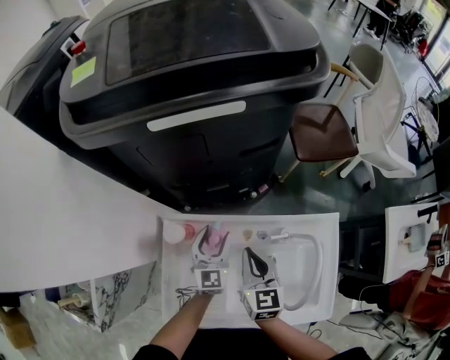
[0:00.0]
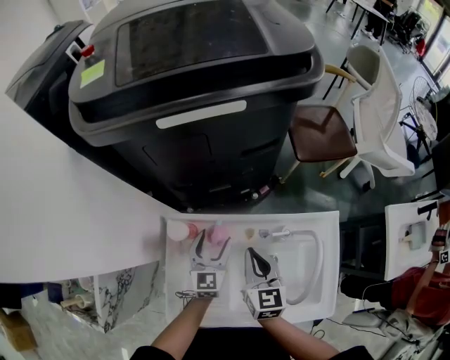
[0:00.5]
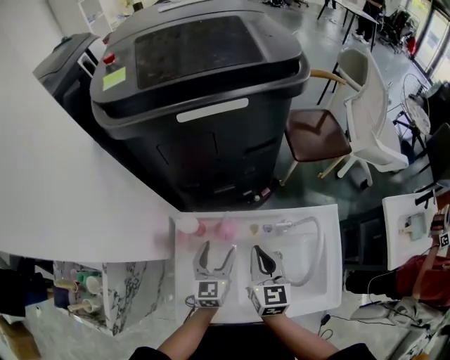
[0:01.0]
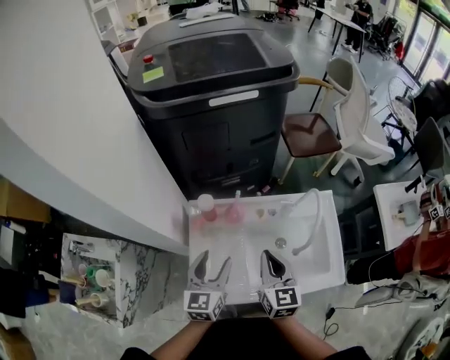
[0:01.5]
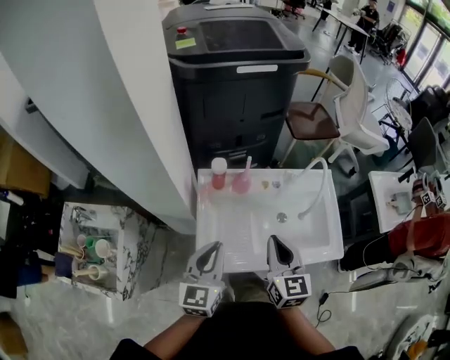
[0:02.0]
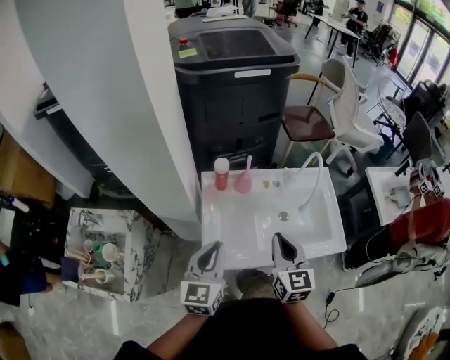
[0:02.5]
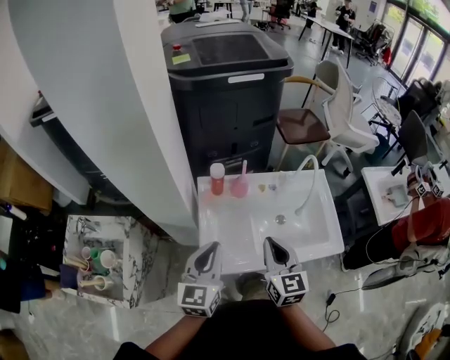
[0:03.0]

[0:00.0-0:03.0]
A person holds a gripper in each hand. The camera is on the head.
0:00.0 to 0:01.5: The right gripper is displaced backward and upward by about 20 cm. Meanwhile the left gripper shifts roughly 25 cm backward, upward and to the left.
0:01.5 to 0:03.0: The right gripper shifts roughly 15 cm backward. Meanwhile the left gripper is displaced backward, upward and to the left by roughly 15 cm, and closes.

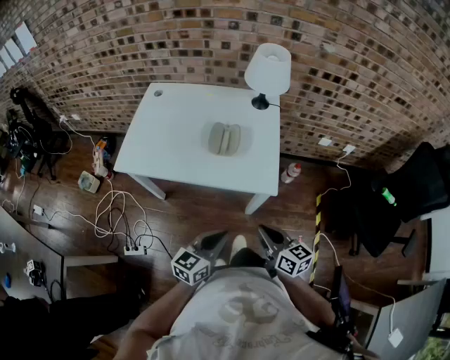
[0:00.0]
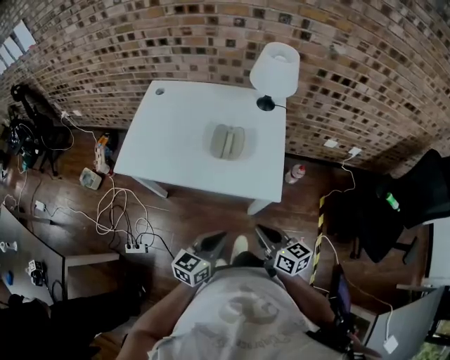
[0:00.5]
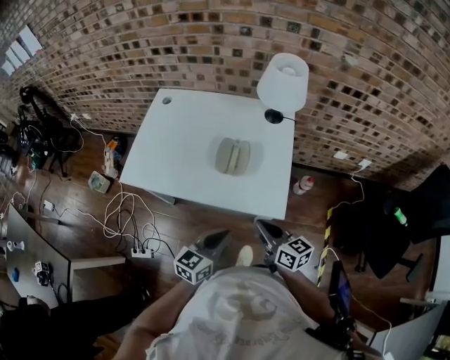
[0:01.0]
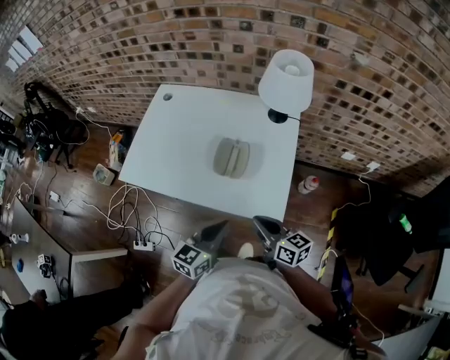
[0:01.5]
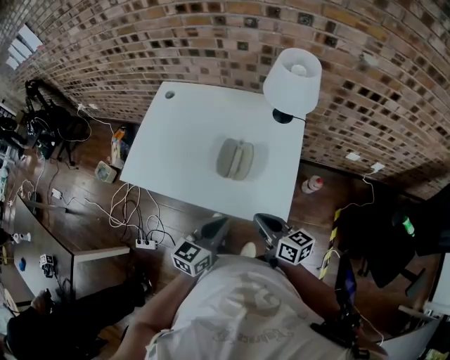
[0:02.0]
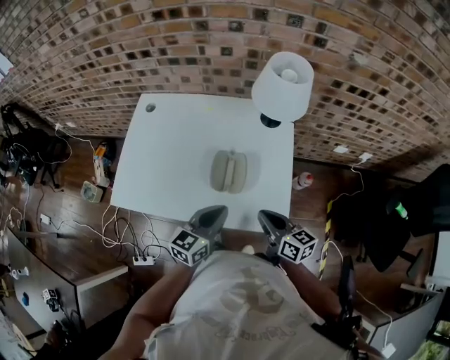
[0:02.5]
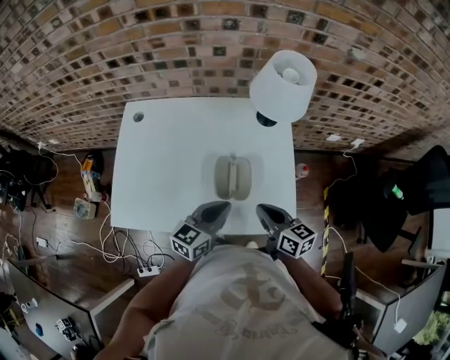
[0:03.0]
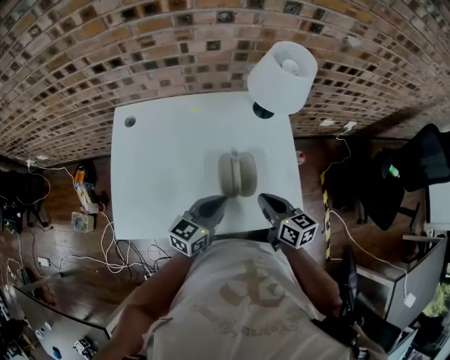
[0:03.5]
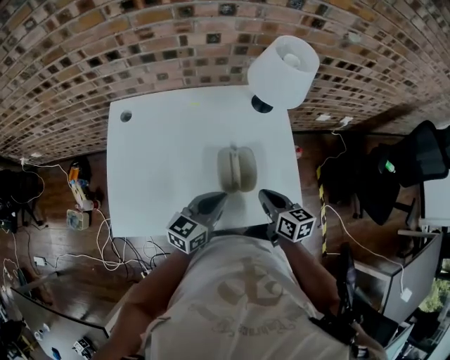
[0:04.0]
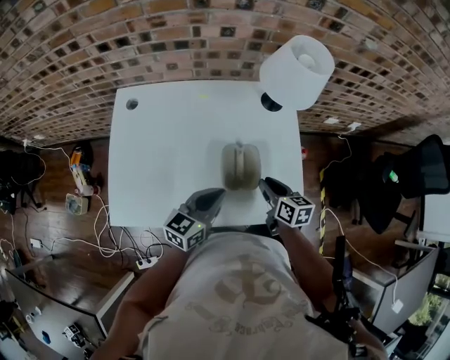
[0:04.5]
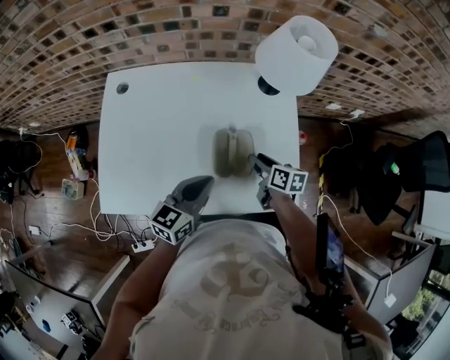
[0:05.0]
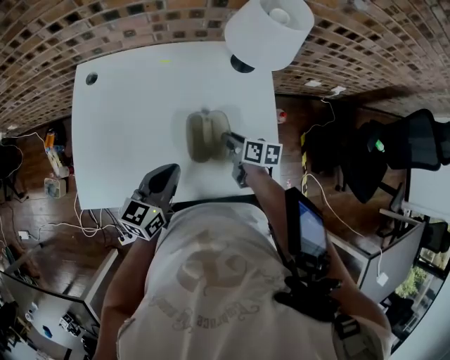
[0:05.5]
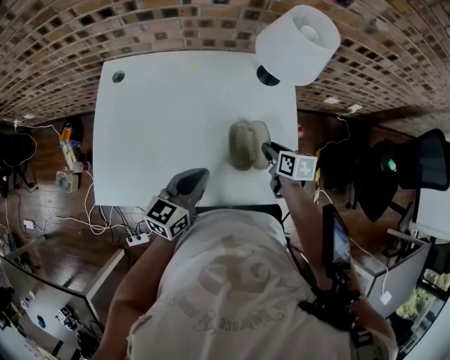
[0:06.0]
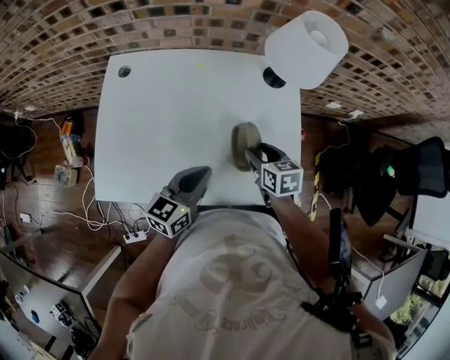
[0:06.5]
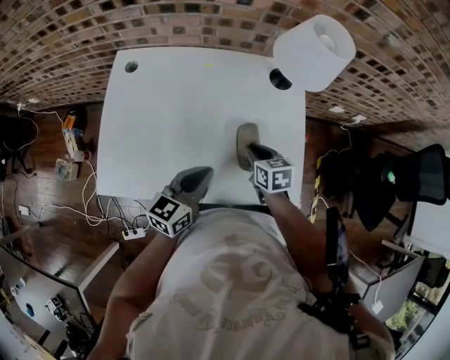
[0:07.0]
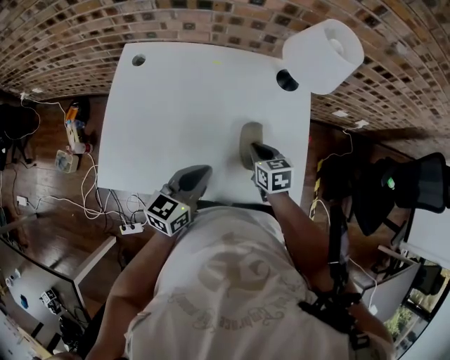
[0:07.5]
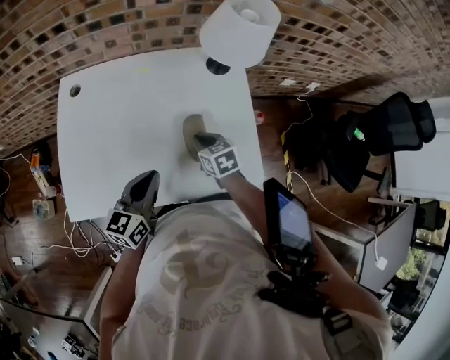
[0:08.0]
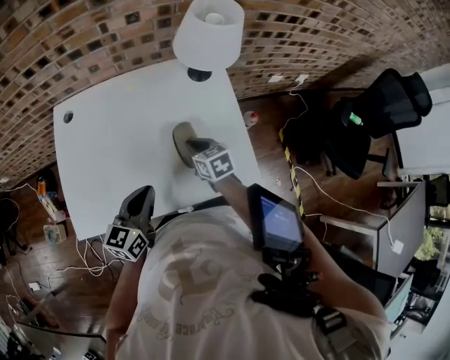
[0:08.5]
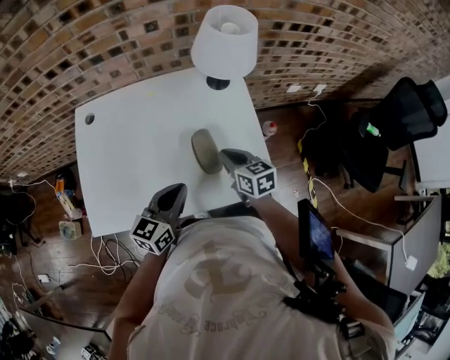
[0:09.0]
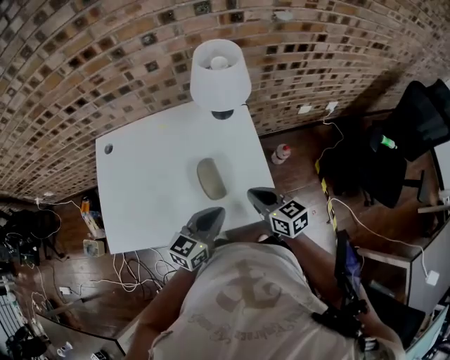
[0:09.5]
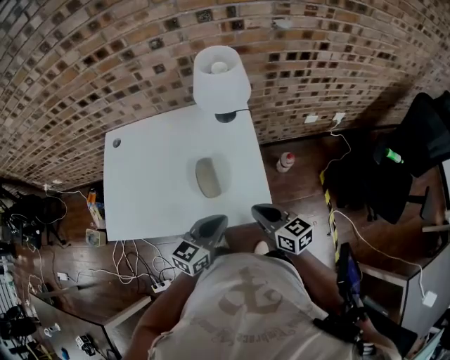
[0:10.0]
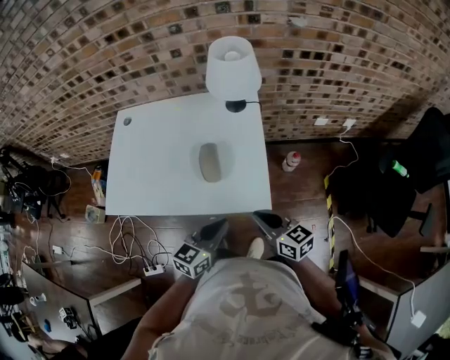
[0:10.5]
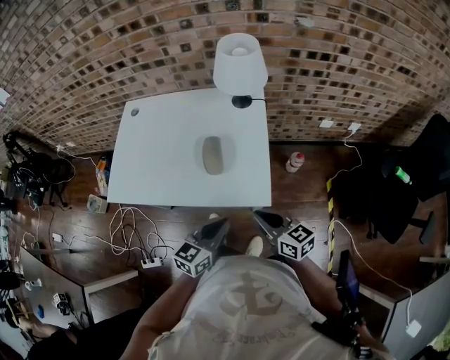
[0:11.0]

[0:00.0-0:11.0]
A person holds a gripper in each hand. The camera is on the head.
0:00.0 to 0:02.0: Both grippers move forward, approximately 20 cm.
0:02.0 to 0:03.5: The right gripper changes place by approximately 15 cm, and rotates about 30 degrees. Meanwhile the left gripper moves some 20 cm, and rotates roughly 30 degrees.
0:03.5 to 0:05.5: The right gripper heads downward and forward, covering approximately 15 cm, rotates about 30 degrees, and opens its fingers.
0:05.5 to 0:07.5: The right gripper moves about 5 cm, turns by some 40 degrees, and closes up.
0:07.5 to 0:09.0: The right gripper travels upward and to the right by about 10 cm. Meanwhile the left gripper moves to the right, roughly 5 cm.
0:09.0 to 0:11.0: The right gripper shifts some 25 cm backward and to the right, and changes its angle by about 30 degrees. Meanwhile the left gripper goes roughly 25 cm to the right and backward.

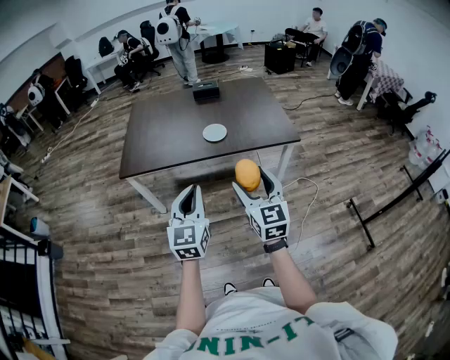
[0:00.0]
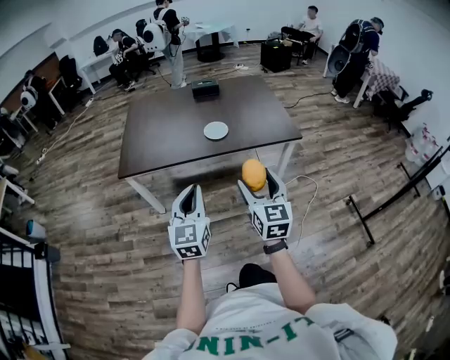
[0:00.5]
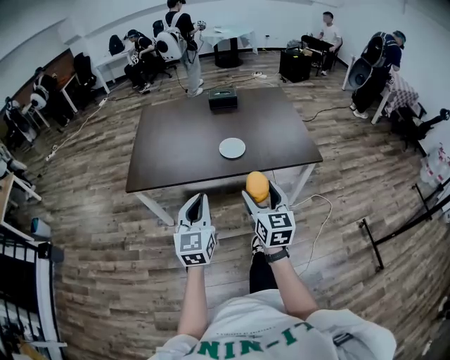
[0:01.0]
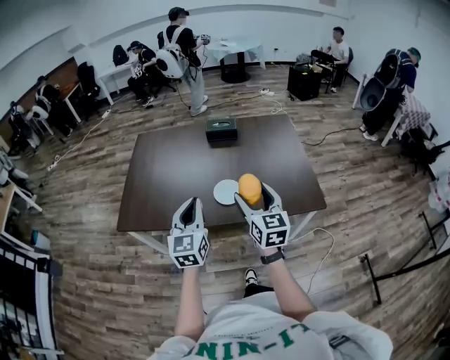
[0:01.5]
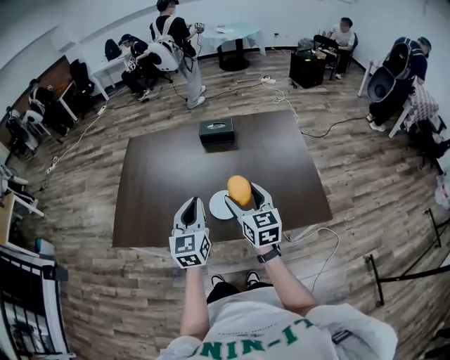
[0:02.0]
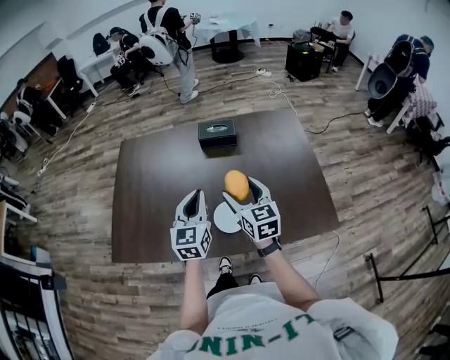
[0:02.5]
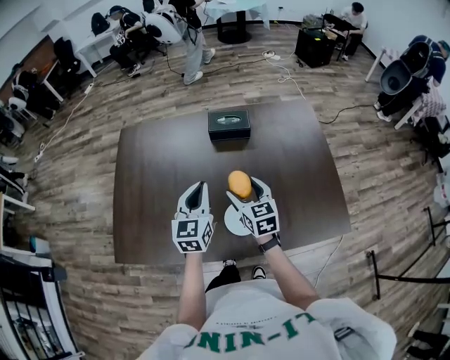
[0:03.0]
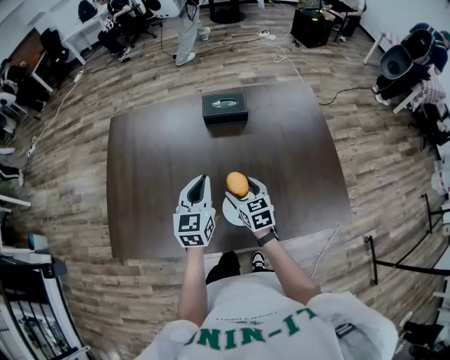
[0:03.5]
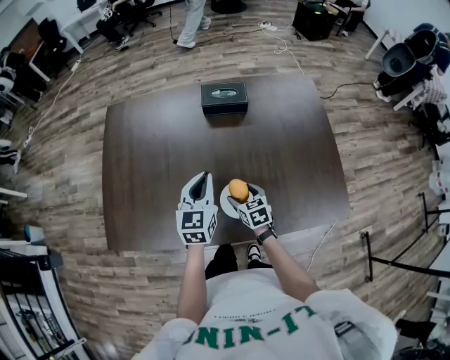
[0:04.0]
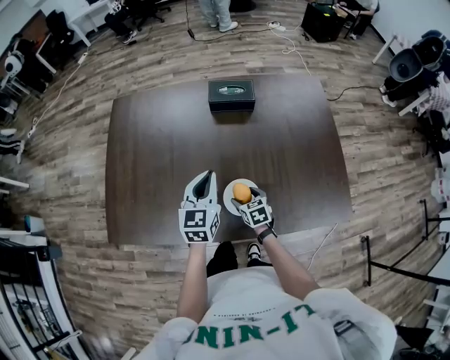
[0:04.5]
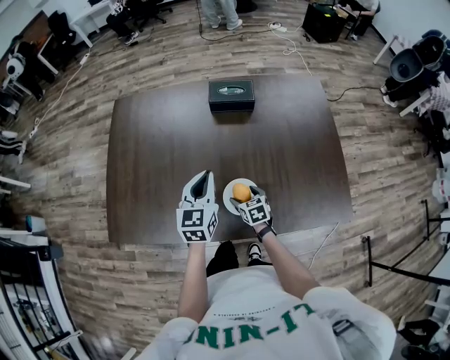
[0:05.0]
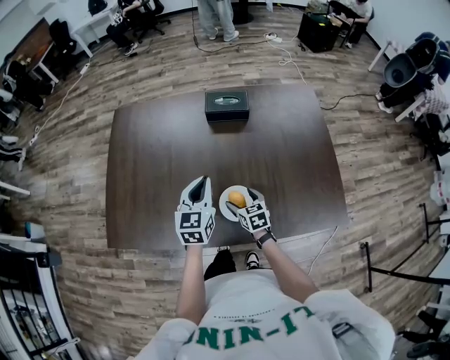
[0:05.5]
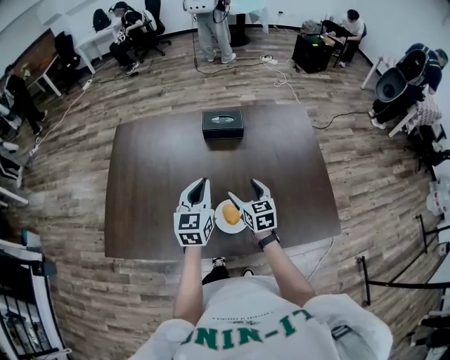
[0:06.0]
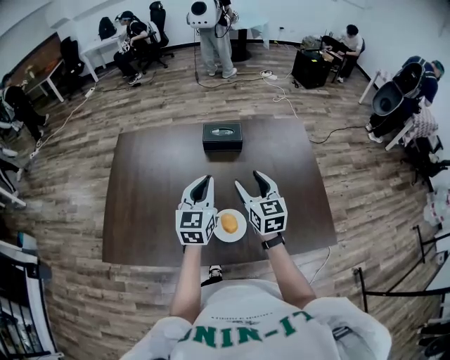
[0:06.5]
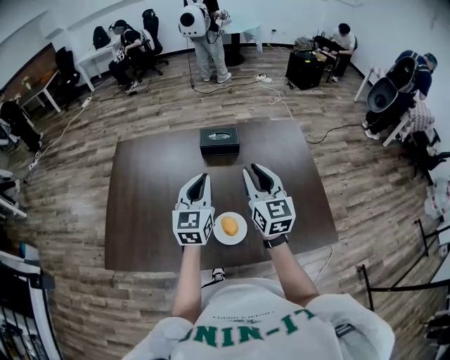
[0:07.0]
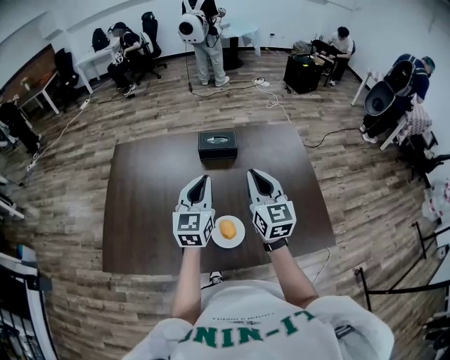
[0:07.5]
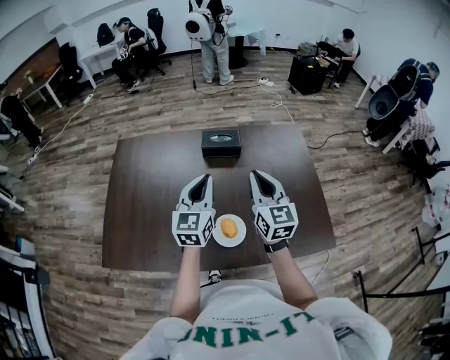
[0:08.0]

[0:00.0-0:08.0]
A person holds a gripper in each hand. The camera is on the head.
0:00.0 to 0:02.0: The two grippers travel together, forward, some 50 cm.
0:02.0 to 0:04.0: The right gripper shifts roughly 35 cm downward and forward, and tilts its fingers some 30 degrees downward; the left gripper is displaced forward and downward by roughly 25 cm.
0:04.0 to 0:06.0: The right gripper travels upward by roughly 15 cm. The left gripper heads upward, covering about 5 cm.
0:06.0 to 0:08.0: The left gripper travels upward by about 10 cm. The right gripper moves upward, some 20 cm, swivels approximately 20 degrees, and closes its fingers.

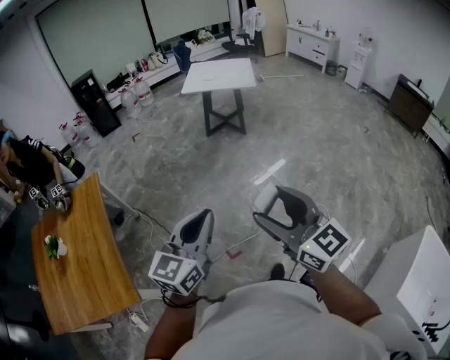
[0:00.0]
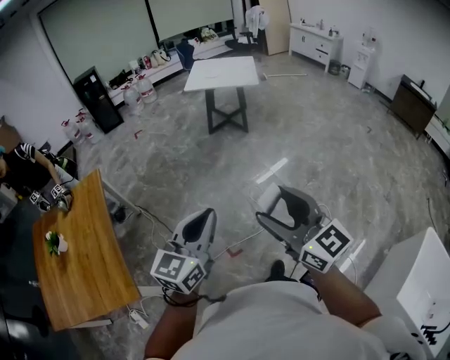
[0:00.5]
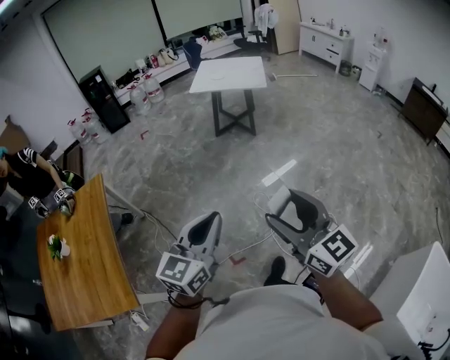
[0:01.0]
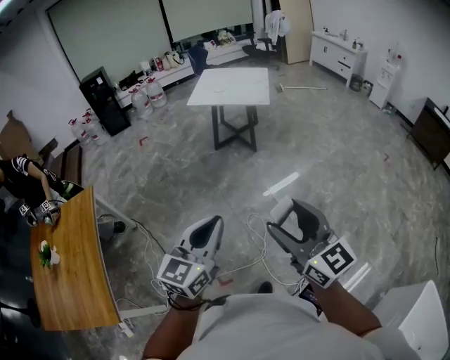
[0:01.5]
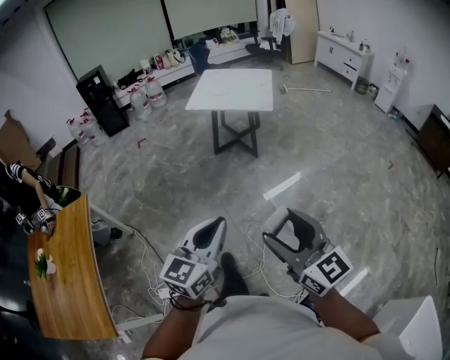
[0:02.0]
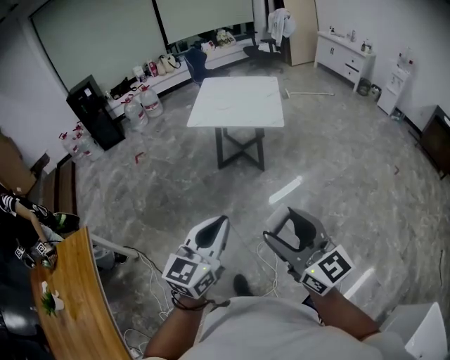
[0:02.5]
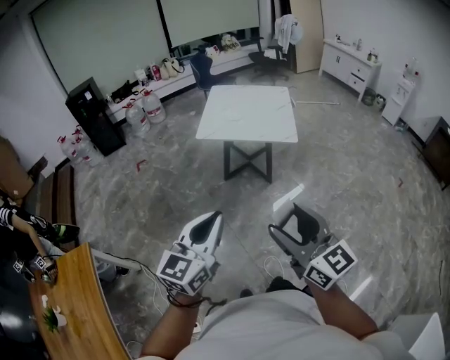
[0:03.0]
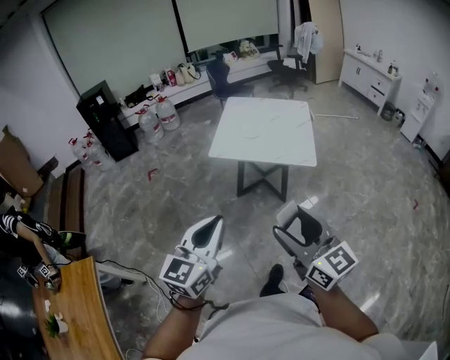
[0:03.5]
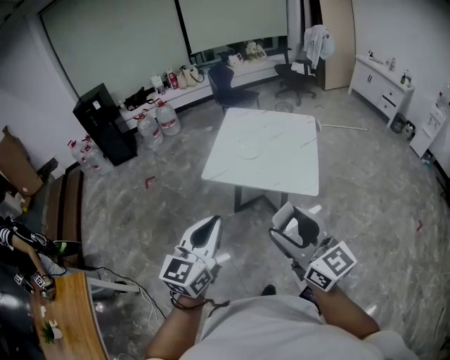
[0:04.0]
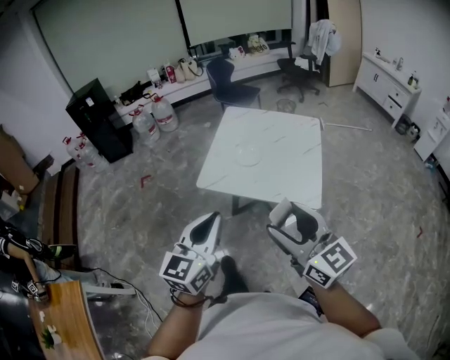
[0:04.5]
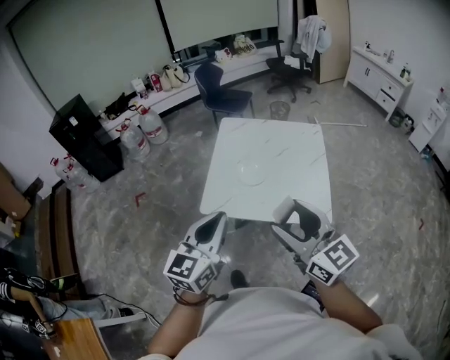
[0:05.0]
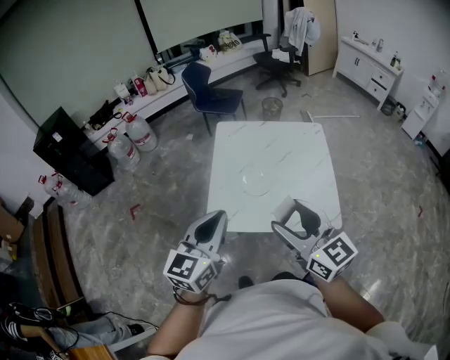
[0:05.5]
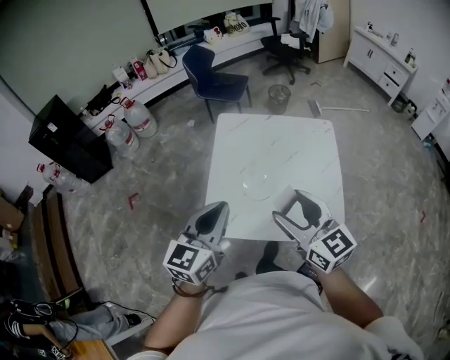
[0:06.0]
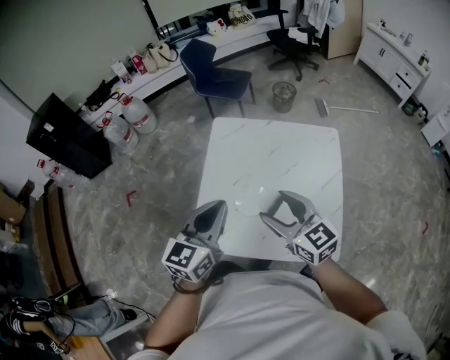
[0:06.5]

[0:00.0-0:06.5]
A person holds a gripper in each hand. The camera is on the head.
0:00.0 to 0:02.0: Both grippers are carried forward and to the right, approximately 40 cm.
0:02.0 to 0:04.5: The two grippers travel together, forward, some 90 cm.
0:04.5 to 0:06.5: Both grippers are carried forward, roughly 50 cm.
